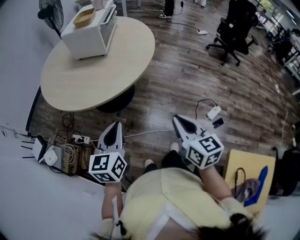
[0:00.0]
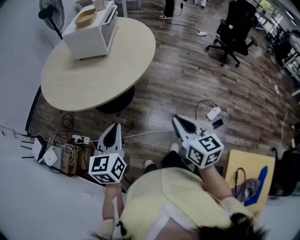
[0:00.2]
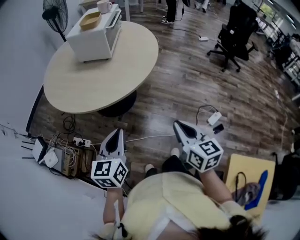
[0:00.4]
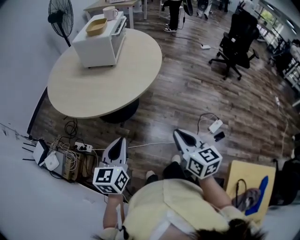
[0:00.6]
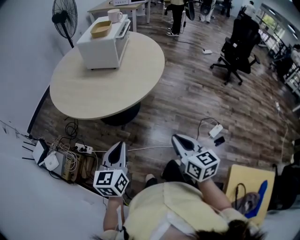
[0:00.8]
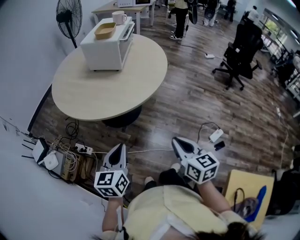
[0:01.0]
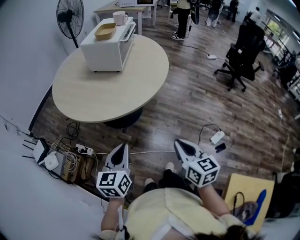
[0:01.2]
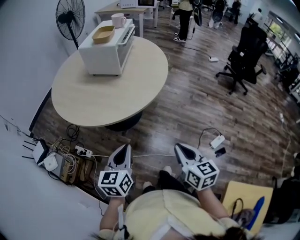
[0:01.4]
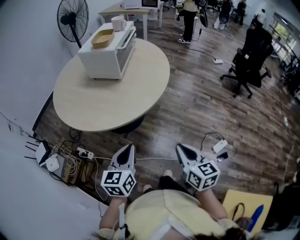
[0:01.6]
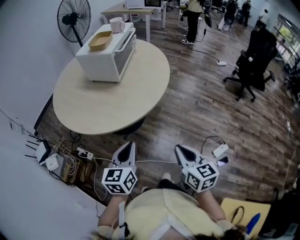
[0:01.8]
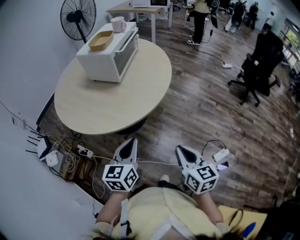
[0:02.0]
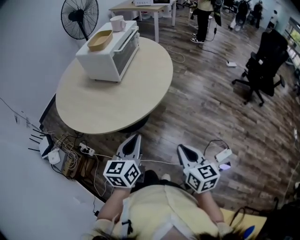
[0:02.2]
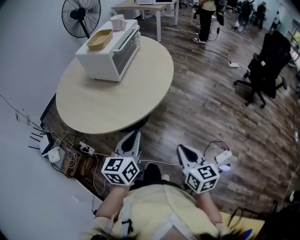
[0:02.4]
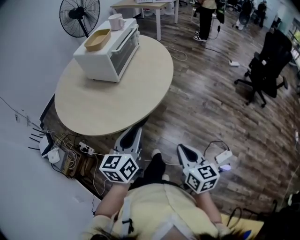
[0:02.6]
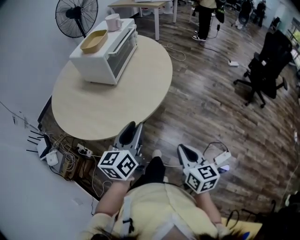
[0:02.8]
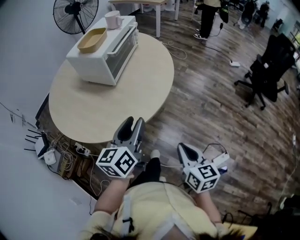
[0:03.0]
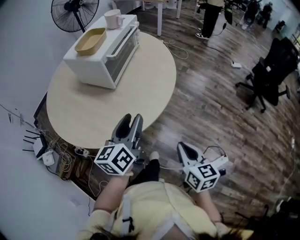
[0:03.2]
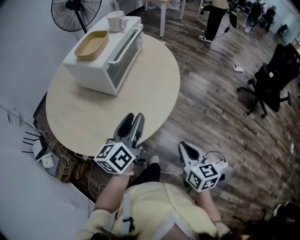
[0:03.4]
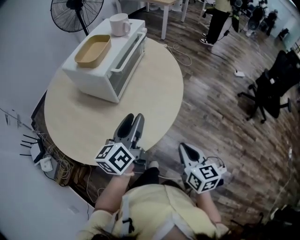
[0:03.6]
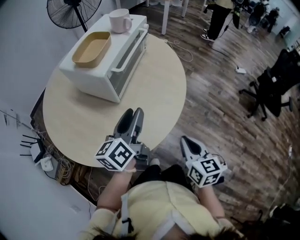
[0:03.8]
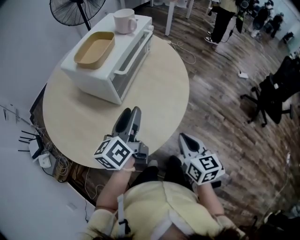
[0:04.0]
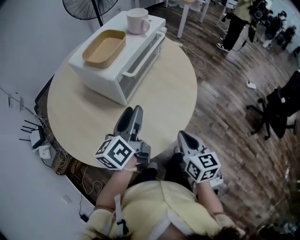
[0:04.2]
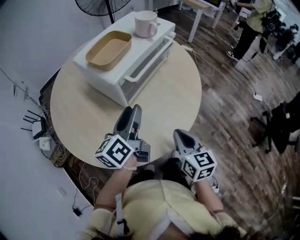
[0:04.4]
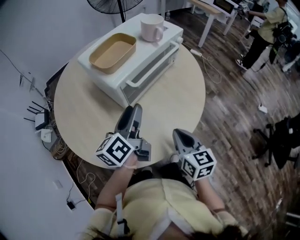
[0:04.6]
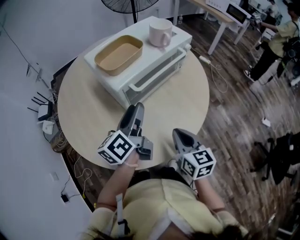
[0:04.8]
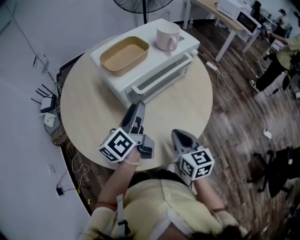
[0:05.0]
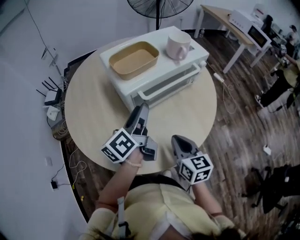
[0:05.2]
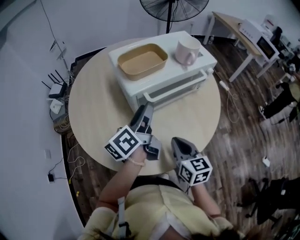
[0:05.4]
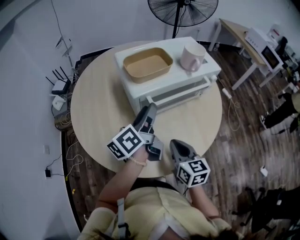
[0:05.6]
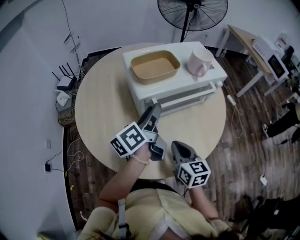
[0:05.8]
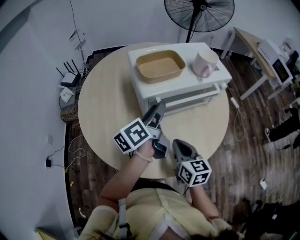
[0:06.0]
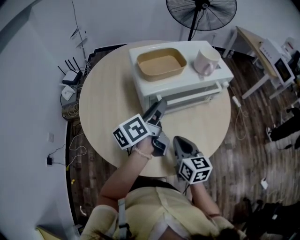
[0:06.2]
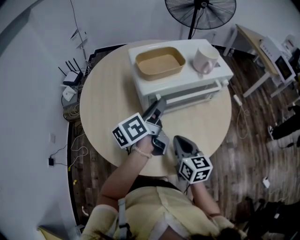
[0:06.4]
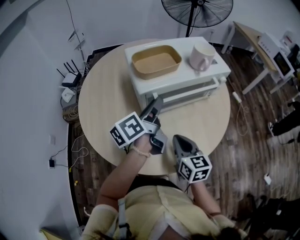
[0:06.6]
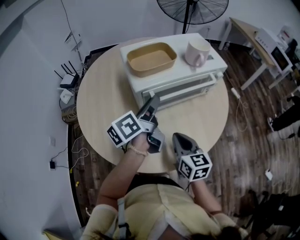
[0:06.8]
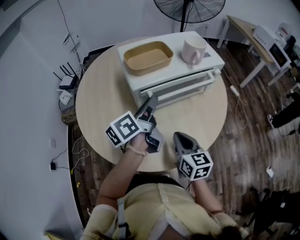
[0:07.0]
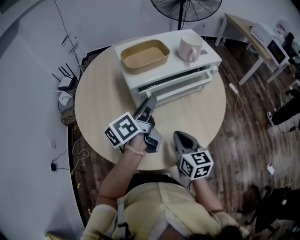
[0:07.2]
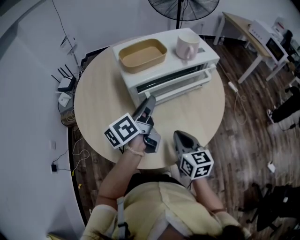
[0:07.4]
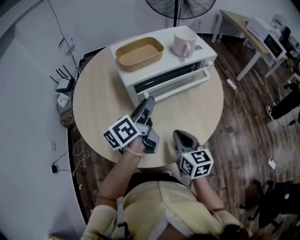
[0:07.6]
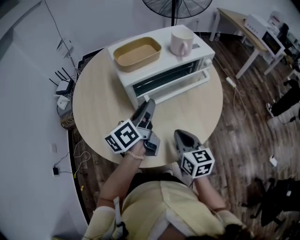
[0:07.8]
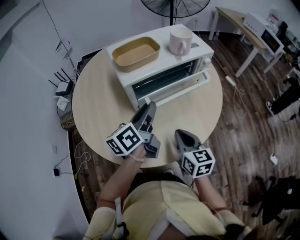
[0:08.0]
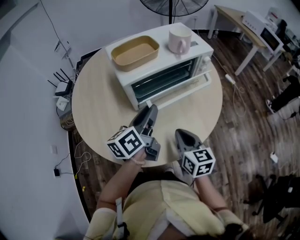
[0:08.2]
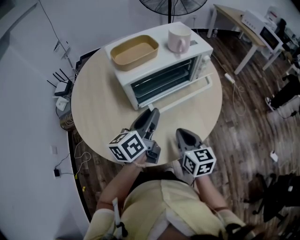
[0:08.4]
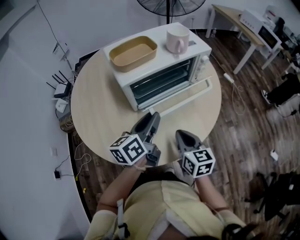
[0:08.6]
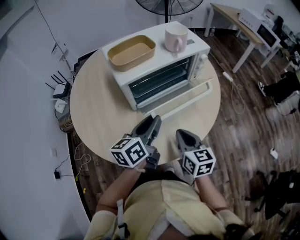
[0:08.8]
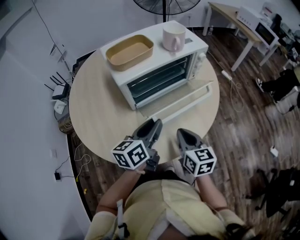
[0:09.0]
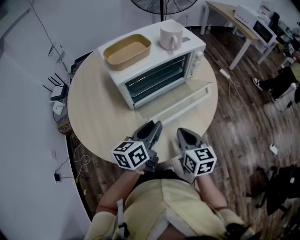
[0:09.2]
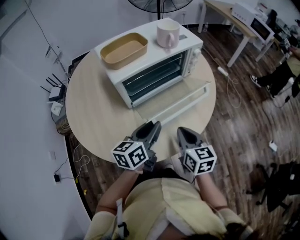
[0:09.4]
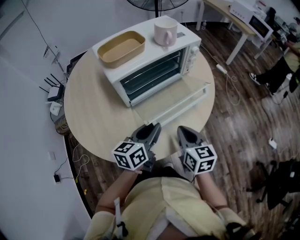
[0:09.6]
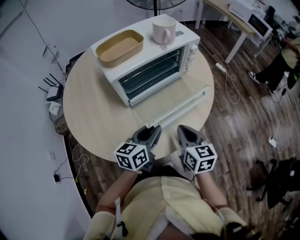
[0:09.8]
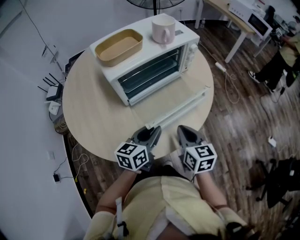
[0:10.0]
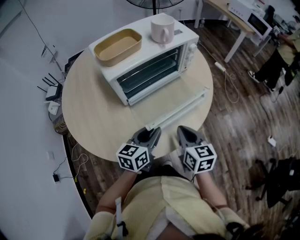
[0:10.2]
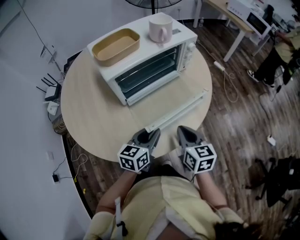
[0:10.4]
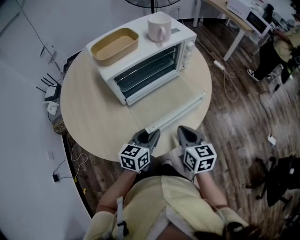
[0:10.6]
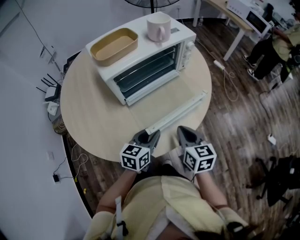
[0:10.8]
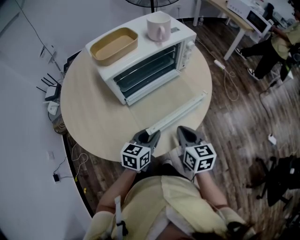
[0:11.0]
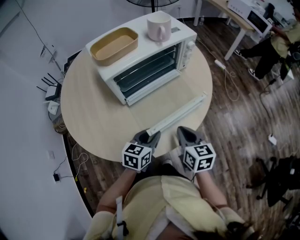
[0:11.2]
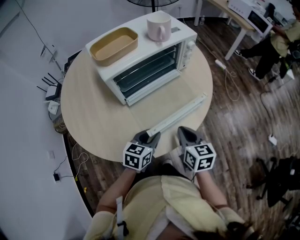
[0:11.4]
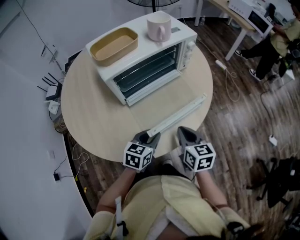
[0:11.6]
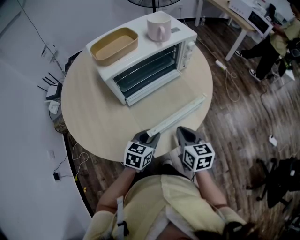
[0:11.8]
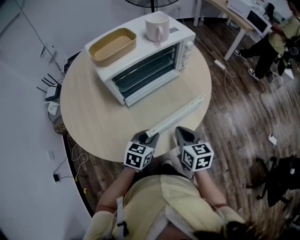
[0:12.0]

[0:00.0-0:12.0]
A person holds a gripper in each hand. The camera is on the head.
0:00.0 to 0:01.6: The right gripper travels forward by roughly 5 cm; the left gripper moves some 5 cm.
0:01.6 to 0:03.0: The grippers both shift forward and to the right by roughly 20 cm. The left gripper opens its fingers.
0:03.0 to 0:04.4: Both grippers move forward, approximately 25 cm. The left gripper rotates approximately 30 degrees.
0:04.4 to 0:06.0: The right gripper moves about 10 cm, and rotates approximately 30 degrees; the left gripper changes place by approximately 10 cm, and rotates about 30 degrees.
0:06.0 to 0:07.6: The grippers make only small movements.
0:07.6 to 0:09.0: The left gripper heads backward and downward, covering approximately 10 cm, and rotates roughly 20 degrees.
0:09.0 to 0:10.4: The left gripper goes roughly 10 cm downward, and changes its angle by approximately 20 degrees.
0:10.4 to 0:12.0: The left gripper travels downward by about 5 cm, and swivels some 20 degrees.

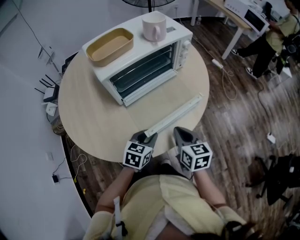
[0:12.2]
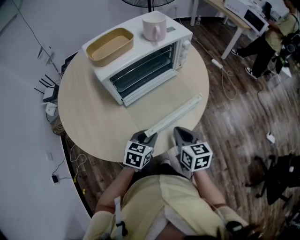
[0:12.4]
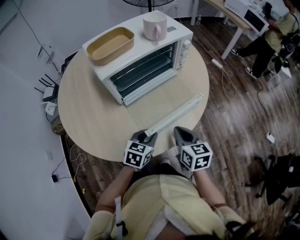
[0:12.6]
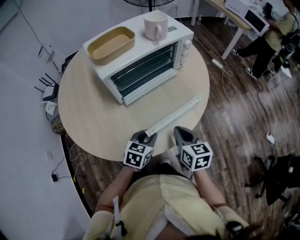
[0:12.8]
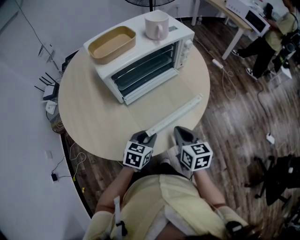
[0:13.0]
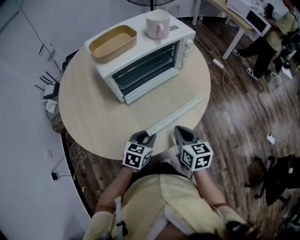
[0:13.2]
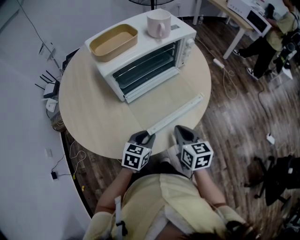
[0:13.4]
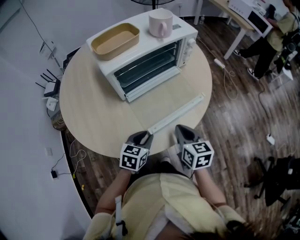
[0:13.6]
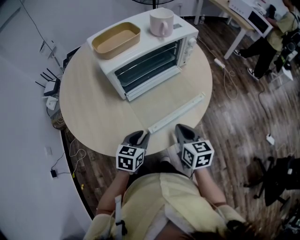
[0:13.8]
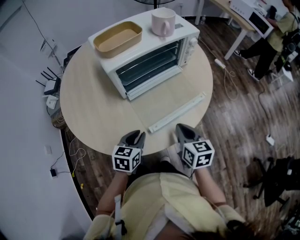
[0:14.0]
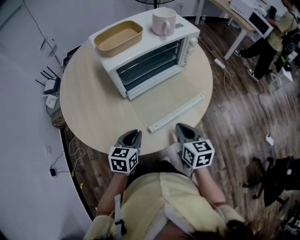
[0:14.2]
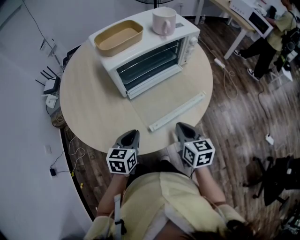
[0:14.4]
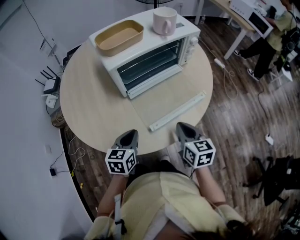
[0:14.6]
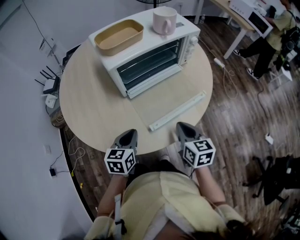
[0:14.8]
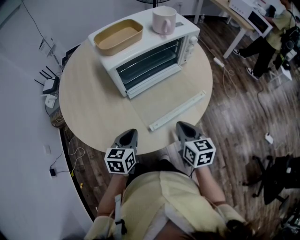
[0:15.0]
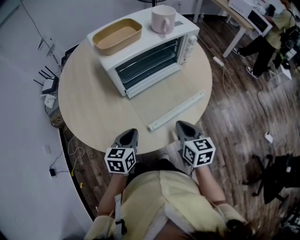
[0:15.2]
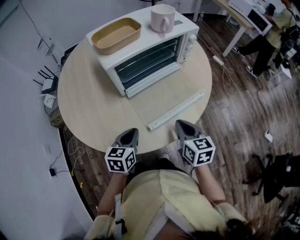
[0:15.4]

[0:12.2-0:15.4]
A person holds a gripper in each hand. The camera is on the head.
0:12.2 to 0:13.8: The left gripper moves about 5 cm.
0:13.8 to 0:15.4: There are only small adjustments of the grippers.

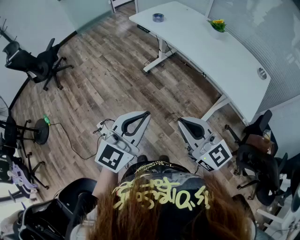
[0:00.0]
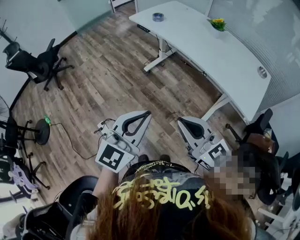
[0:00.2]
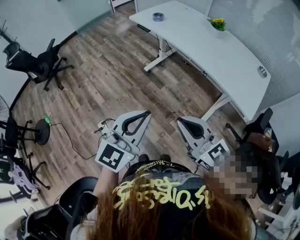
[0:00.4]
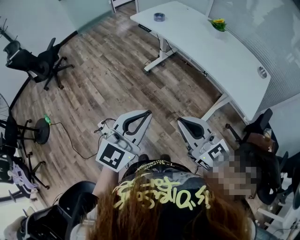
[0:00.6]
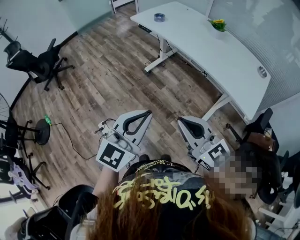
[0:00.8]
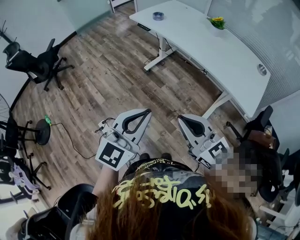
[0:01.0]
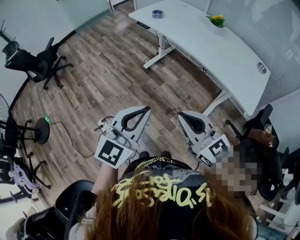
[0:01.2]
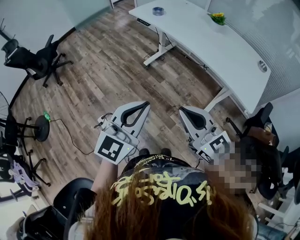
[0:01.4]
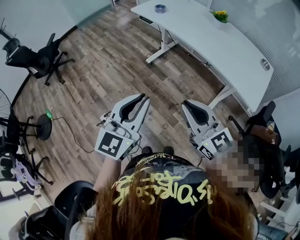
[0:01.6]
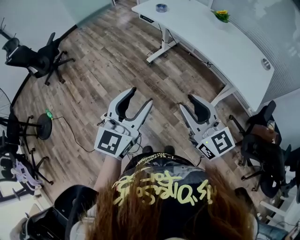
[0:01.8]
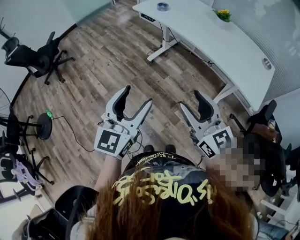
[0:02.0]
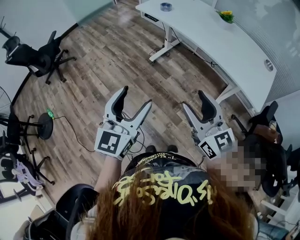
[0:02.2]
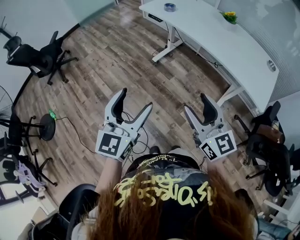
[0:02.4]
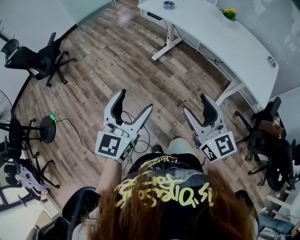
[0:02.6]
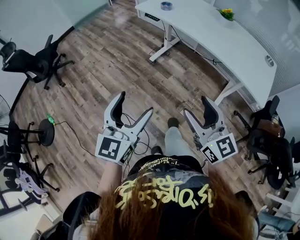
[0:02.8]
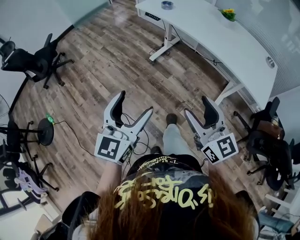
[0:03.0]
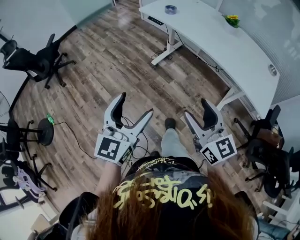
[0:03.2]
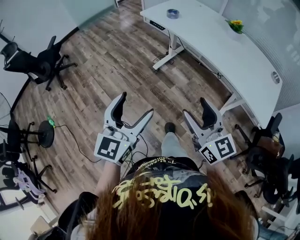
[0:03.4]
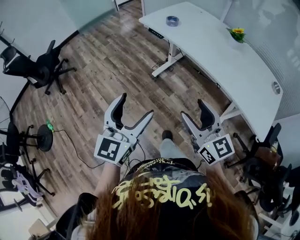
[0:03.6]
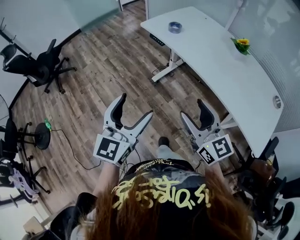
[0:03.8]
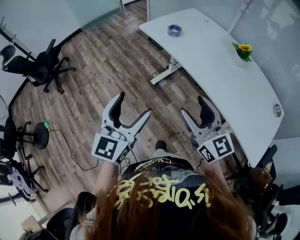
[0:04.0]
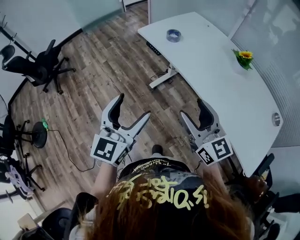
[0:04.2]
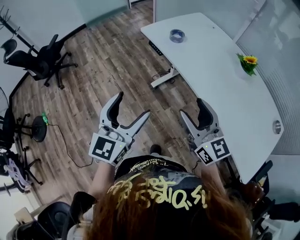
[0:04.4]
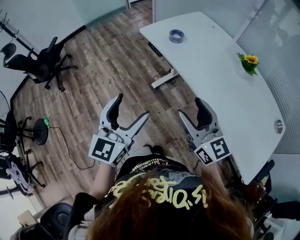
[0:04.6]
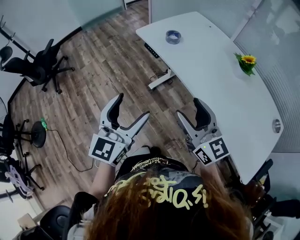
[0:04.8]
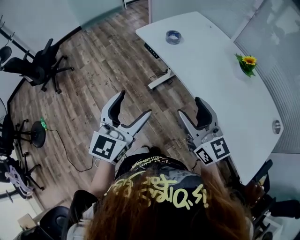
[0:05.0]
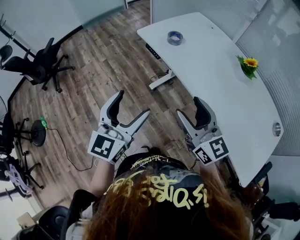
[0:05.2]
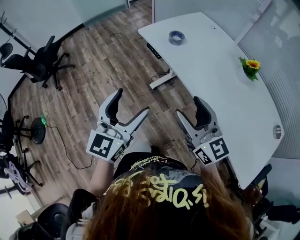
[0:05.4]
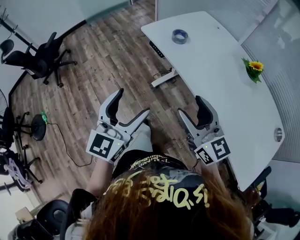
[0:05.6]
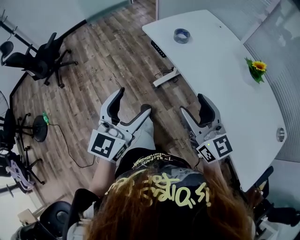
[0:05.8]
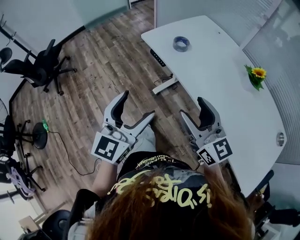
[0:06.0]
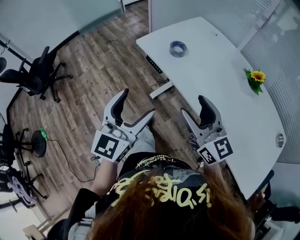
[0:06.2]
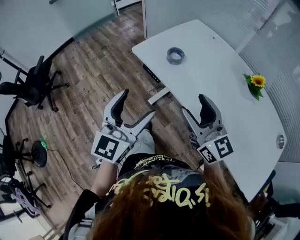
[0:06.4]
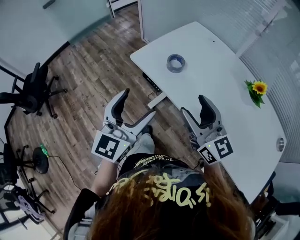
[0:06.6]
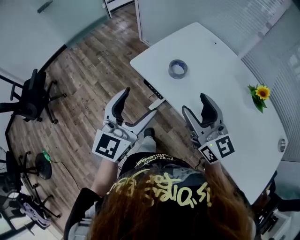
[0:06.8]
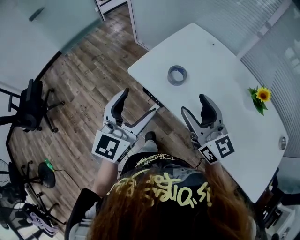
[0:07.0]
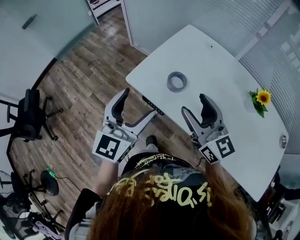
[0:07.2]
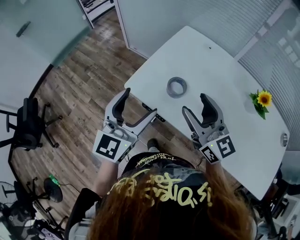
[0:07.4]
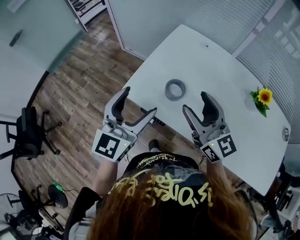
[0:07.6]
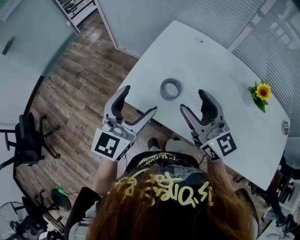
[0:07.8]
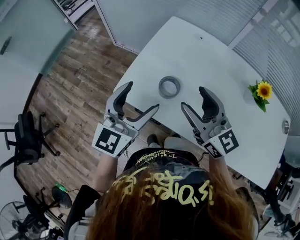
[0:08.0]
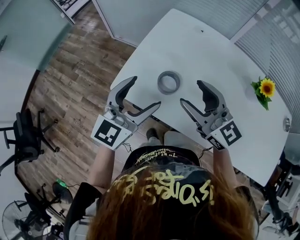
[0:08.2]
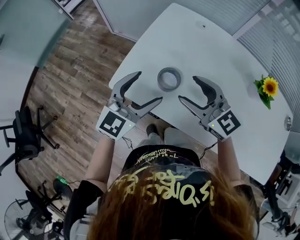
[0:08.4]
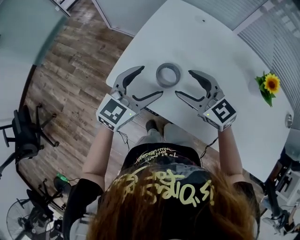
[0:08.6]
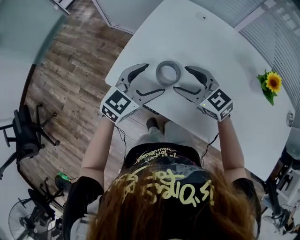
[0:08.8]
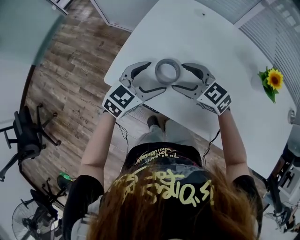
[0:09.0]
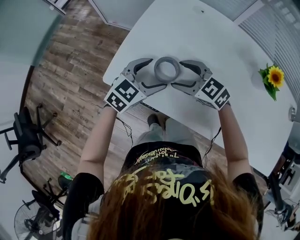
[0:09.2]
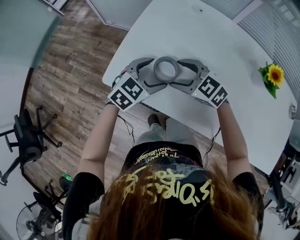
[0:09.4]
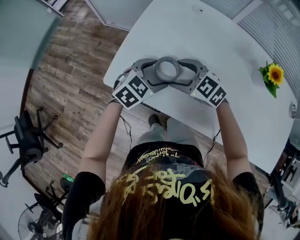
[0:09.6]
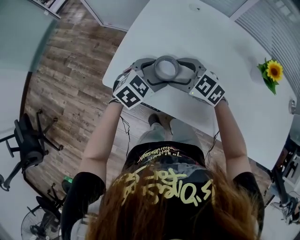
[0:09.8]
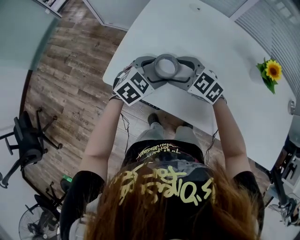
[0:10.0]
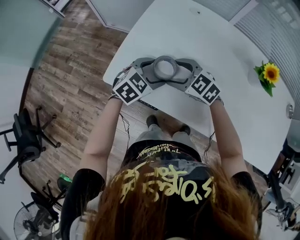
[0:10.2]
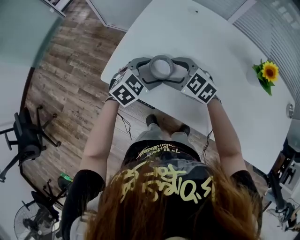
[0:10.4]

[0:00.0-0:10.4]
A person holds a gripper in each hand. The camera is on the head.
0:00.0 to 0:01.4: The grippers stay close to where they were, moving slightly.
0:01.4 to 0:03.0: The left gripper moves to the left, approximately 15 cm, and opens its fingers, while the right gripper moves to the left, some 5 cm, and opens its fingers.
0:03.0 to 0:04.4: Both grippers move forward, some 30 cm.
0:04.4 to 0:06.0: Both grippers travel together forward, some 10 cm.
0:06.0 to 0:07.4: Both grippers travel together forward, about 30 cm.
0:07.4 to 0:09.0: The right gripper is displaced downward and forward by about 20 cm, and tilts its fingers some 30 degrees downward; the left gripper shifts approximately 20 cm downward, forward and to the right, and turns by some 40 degrees.
0:09.0 to 0:10.4: The left gripper changes its angle by roughly 20 degrees.
